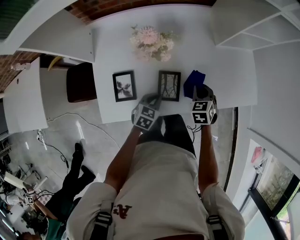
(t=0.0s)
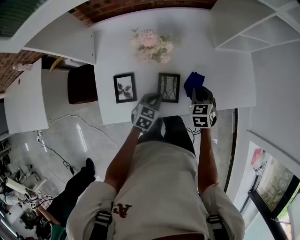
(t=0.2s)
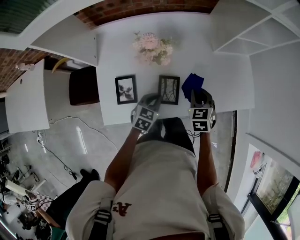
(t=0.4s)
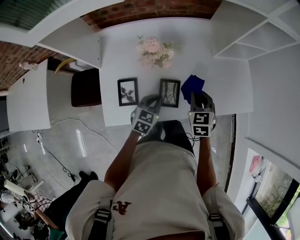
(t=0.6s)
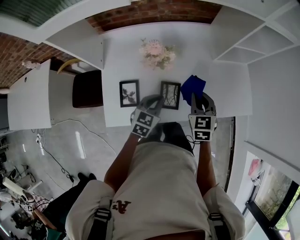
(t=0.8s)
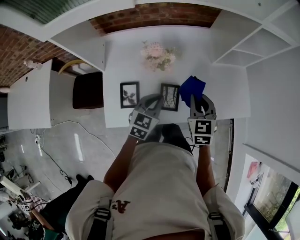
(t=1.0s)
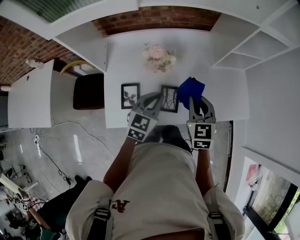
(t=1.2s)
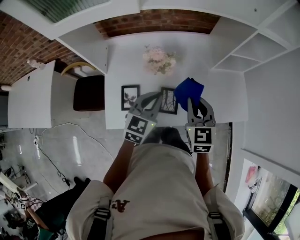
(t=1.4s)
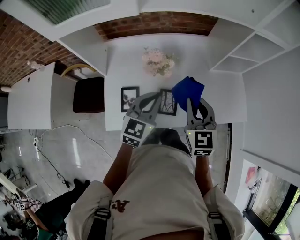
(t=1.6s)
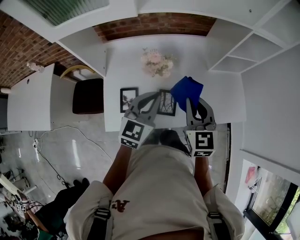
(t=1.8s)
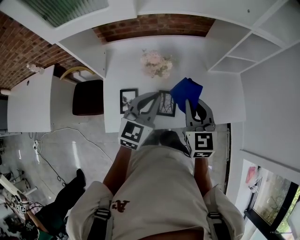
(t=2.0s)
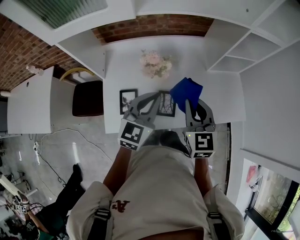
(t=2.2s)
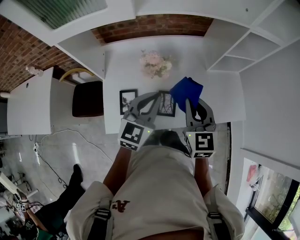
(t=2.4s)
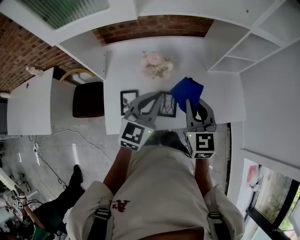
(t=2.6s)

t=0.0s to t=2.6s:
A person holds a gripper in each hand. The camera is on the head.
t=0.0s to t=1.2s: The two grippers go about 20 cm upward. The left gripper swivels some 20 degrees. Meanwhile the right gripper rotates roughly 20 degrees.
t=1.2s to t=2.6s: Both grippers move upward, roughly 10 cm.

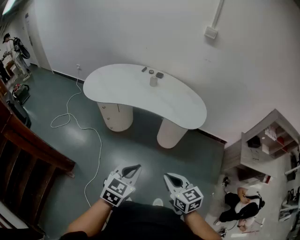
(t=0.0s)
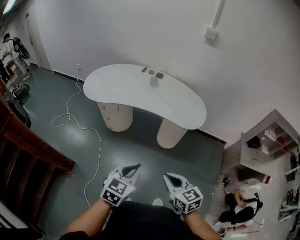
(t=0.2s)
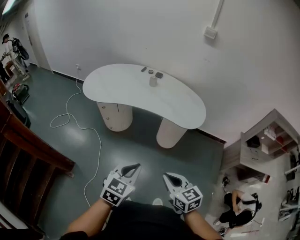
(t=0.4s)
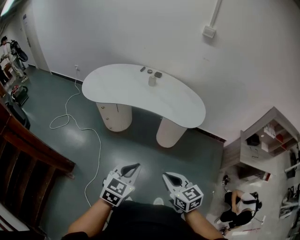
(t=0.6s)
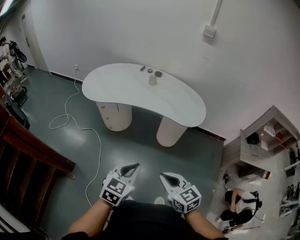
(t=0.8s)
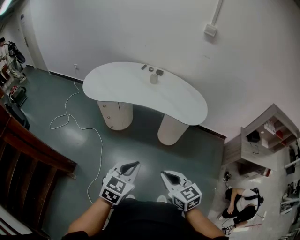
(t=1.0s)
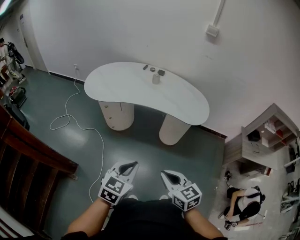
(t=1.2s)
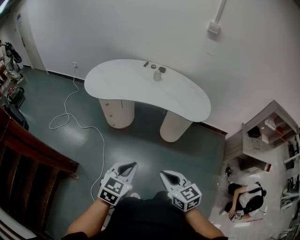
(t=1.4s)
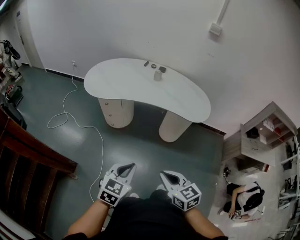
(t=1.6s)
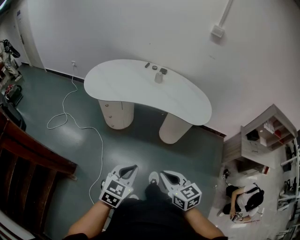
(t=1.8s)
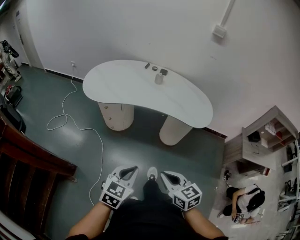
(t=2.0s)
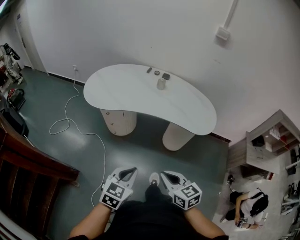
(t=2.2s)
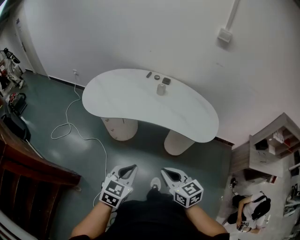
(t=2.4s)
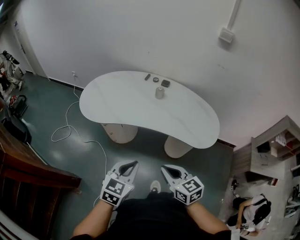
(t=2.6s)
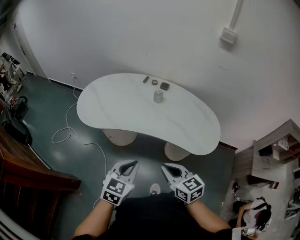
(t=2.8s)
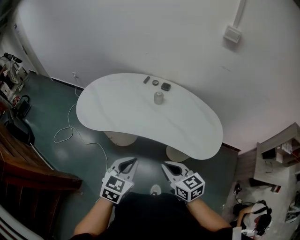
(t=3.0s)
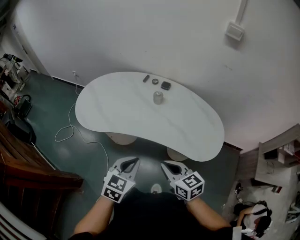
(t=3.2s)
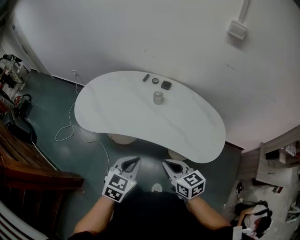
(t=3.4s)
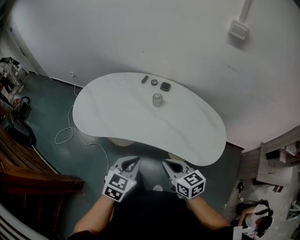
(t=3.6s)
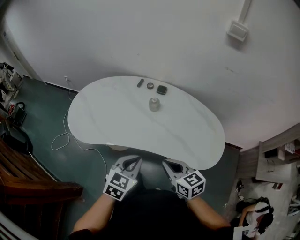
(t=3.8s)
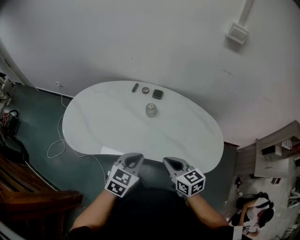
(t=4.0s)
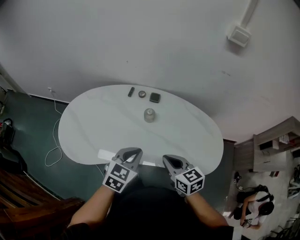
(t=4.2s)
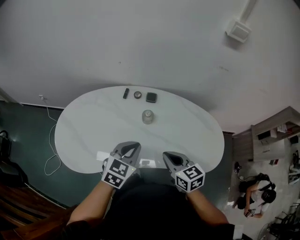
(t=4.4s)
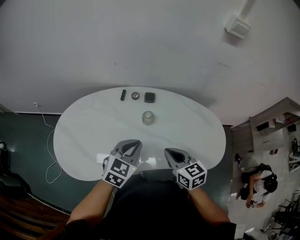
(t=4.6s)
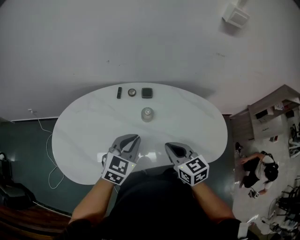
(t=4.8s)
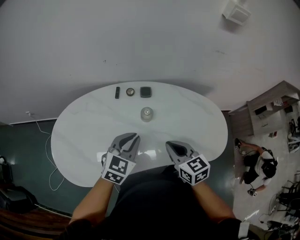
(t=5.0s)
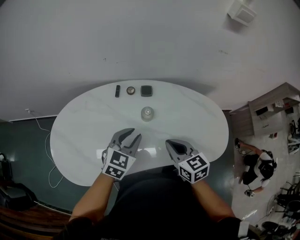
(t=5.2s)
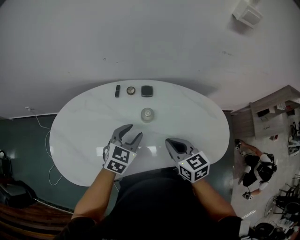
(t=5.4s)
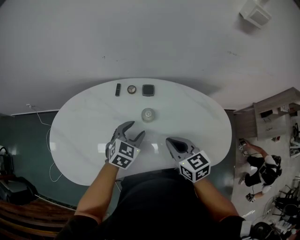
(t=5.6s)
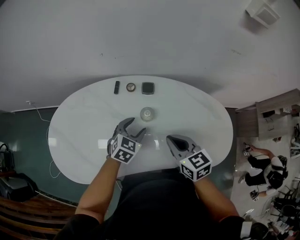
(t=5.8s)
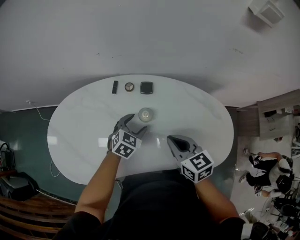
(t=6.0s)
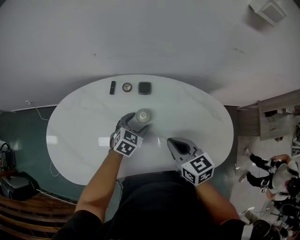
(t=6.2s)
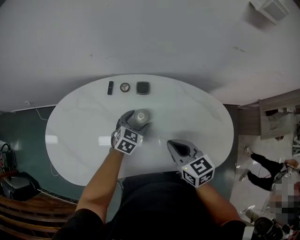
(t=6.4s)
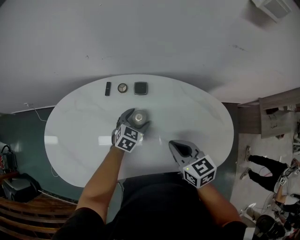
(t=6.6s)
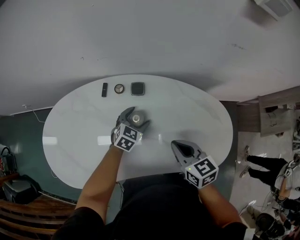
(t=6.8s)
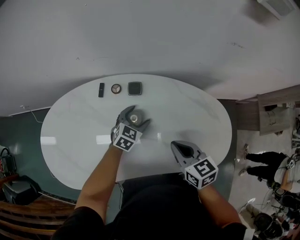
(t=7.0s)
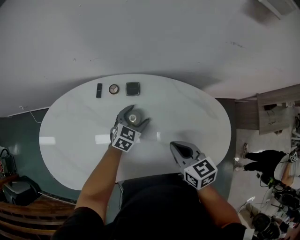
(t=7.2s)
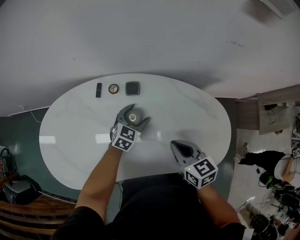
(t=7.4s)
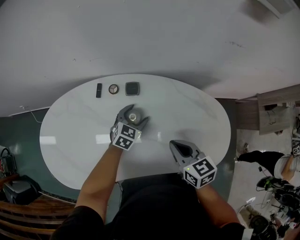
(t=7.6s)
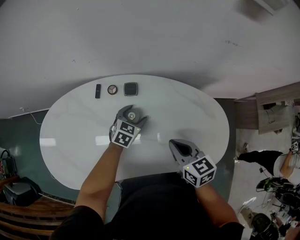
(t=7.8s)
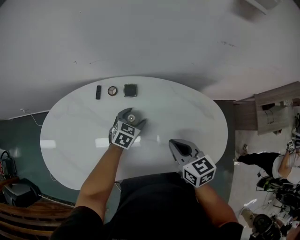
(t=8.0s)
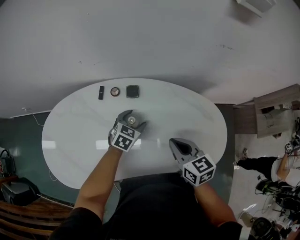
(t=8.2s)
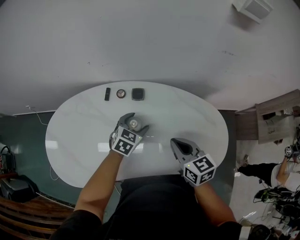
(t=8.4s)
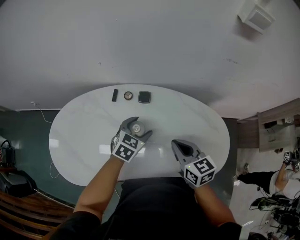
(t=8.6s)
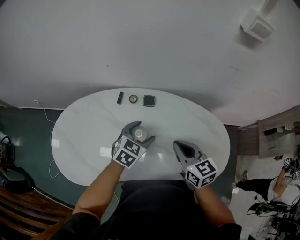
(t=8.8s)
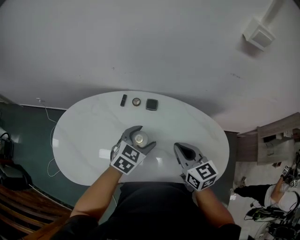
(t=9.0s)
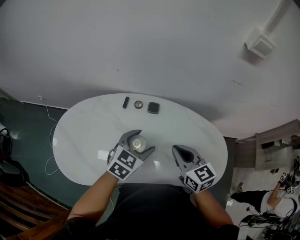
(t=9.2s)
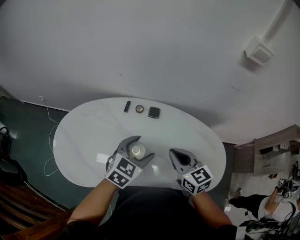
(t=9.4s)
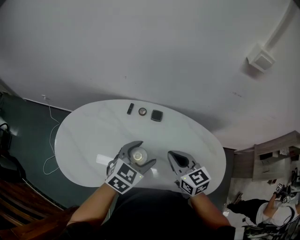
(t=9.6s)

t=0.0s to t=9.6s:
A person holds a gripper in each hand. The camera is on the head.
t=0.0s to t=1.6s: The two grippers go roughly 10 cm to the left.
t=1.6s to t=3.2s: Both grippers move forward, about 35 cm.
t=3.2s to t=4.8s: The left gripper changes place by roughly 35 cm, and swivels some 30 degrees. Meanwhile the right gripper moves about 30 cm, and changes its angle by some 30 degrees.
t=4.8s to t=6.4s: The right gripper moves forward, roughly 5 cm. Meanwhile the left gripper heads downward and forward, covering approximately 25 cm, and opens.
t=6.4s to t=8.0s: The right gripper travels to the right by some 5 cm, while the left gripper ends up some 5 cm from where it was.
t=8.0s to t=9.6s: The left gripper travels upward and backward by roughly 25 cm; the right gripper goes roughly 10 cm upward and to the left, and rotates roughly 20 degrees.

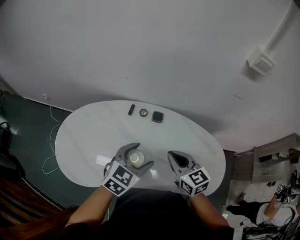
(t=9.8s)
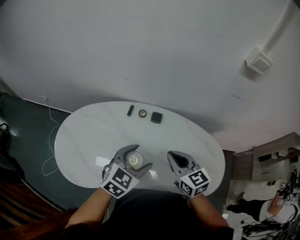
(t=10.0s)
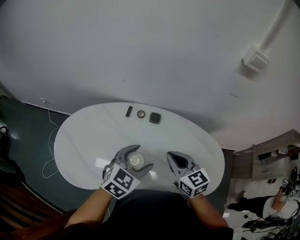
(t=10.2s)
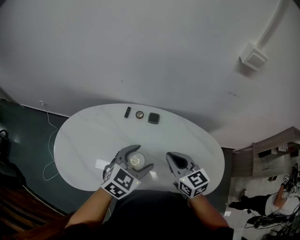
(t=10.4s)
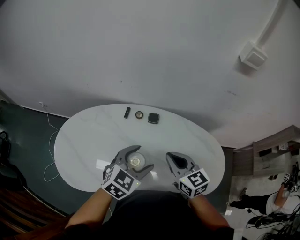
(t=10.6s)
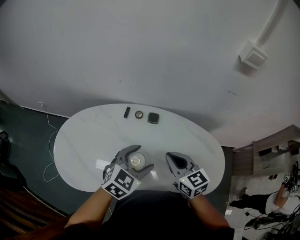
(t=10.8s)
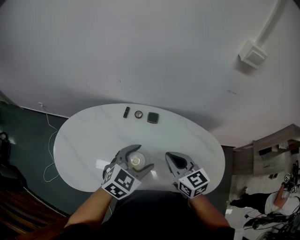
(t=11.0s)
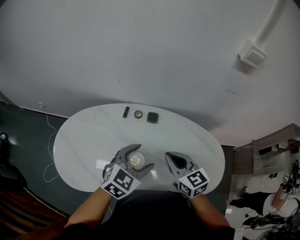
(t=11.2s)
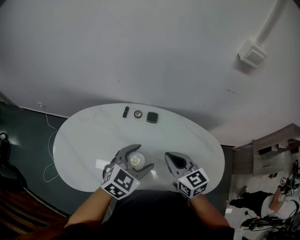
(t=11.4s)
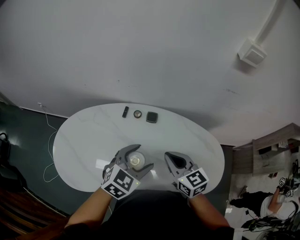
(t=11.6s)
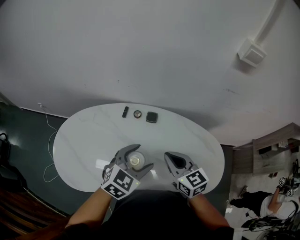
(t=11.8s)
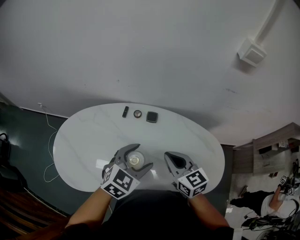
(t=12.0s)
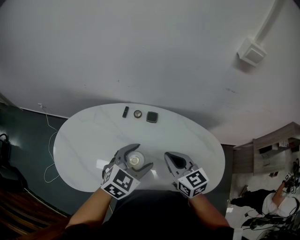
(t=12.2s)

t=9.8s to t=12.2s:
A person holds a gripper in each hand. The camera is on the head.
t=9.8s to t=11.0s: The grippers move only a little.
t=11.0s to t=12.2s: Neither gripper changes place.

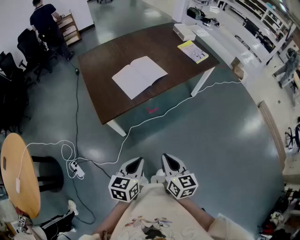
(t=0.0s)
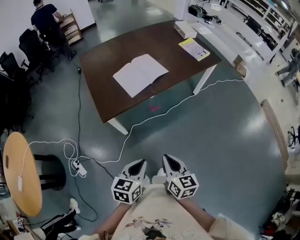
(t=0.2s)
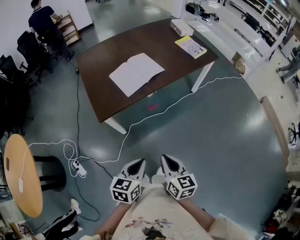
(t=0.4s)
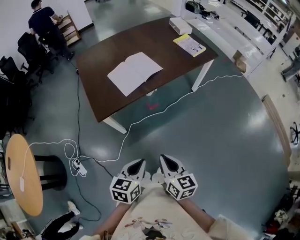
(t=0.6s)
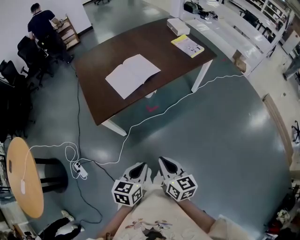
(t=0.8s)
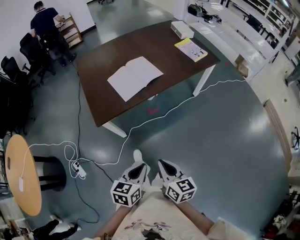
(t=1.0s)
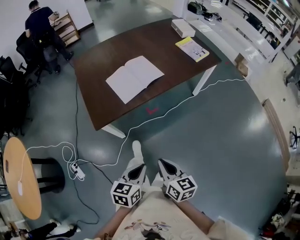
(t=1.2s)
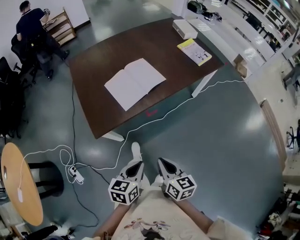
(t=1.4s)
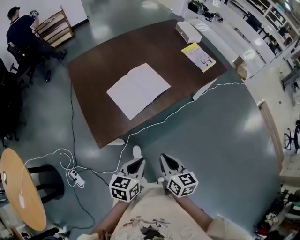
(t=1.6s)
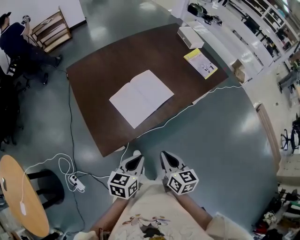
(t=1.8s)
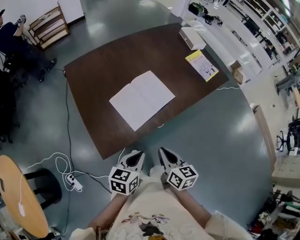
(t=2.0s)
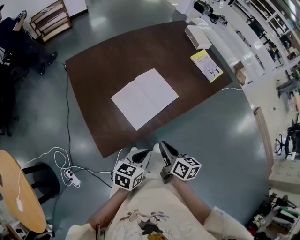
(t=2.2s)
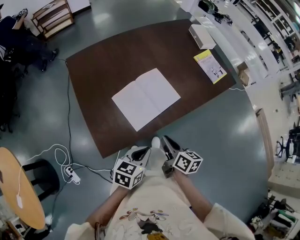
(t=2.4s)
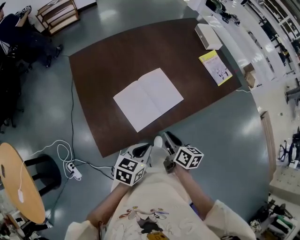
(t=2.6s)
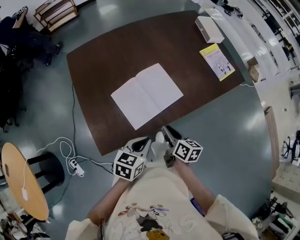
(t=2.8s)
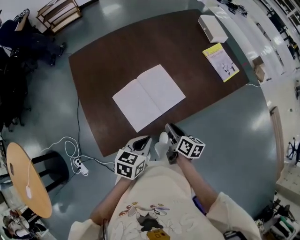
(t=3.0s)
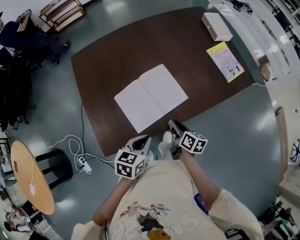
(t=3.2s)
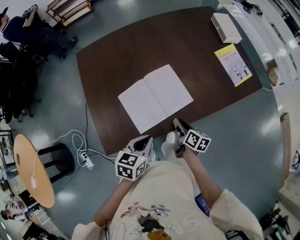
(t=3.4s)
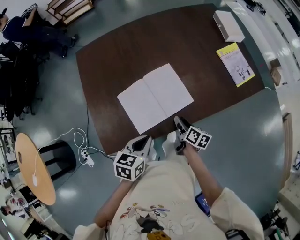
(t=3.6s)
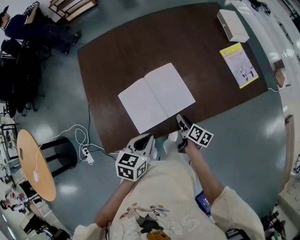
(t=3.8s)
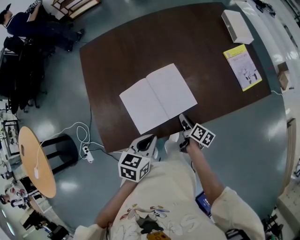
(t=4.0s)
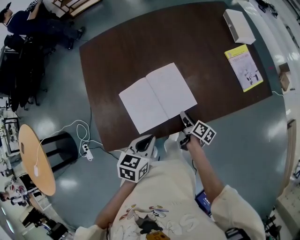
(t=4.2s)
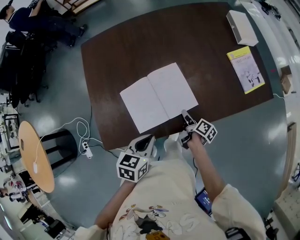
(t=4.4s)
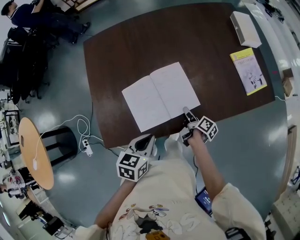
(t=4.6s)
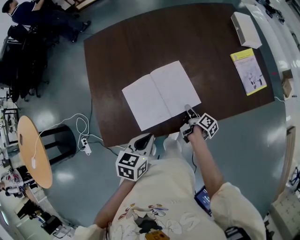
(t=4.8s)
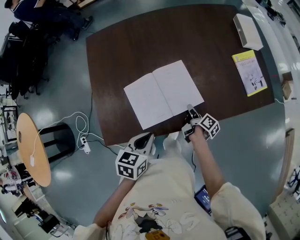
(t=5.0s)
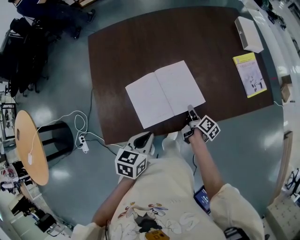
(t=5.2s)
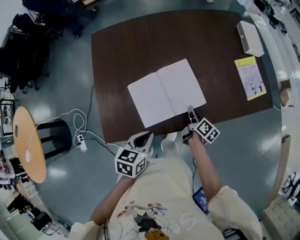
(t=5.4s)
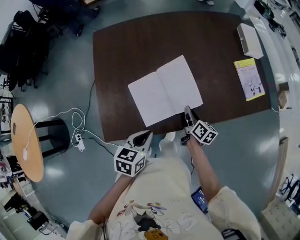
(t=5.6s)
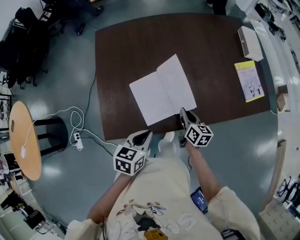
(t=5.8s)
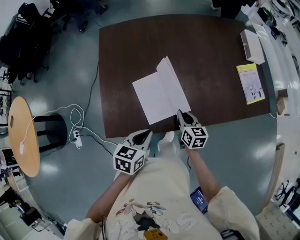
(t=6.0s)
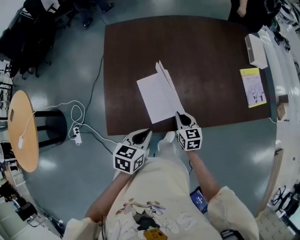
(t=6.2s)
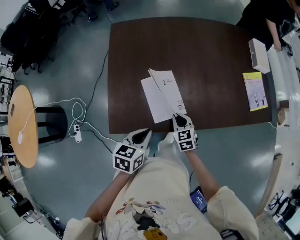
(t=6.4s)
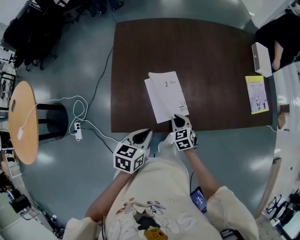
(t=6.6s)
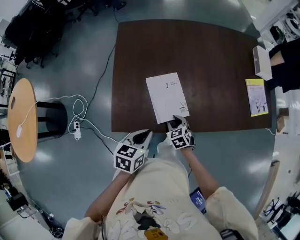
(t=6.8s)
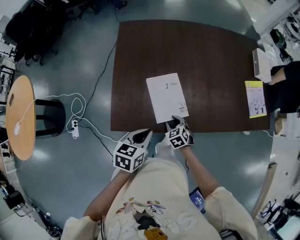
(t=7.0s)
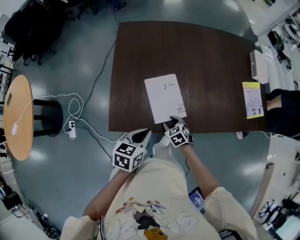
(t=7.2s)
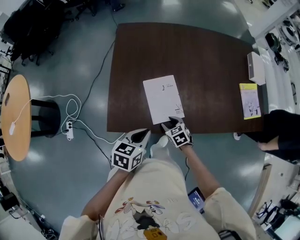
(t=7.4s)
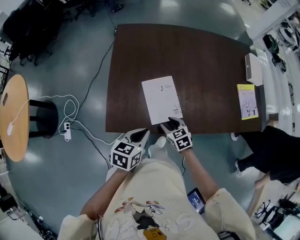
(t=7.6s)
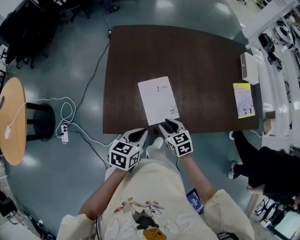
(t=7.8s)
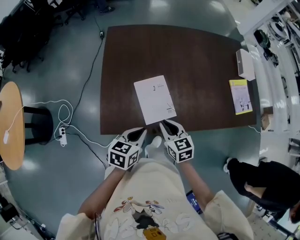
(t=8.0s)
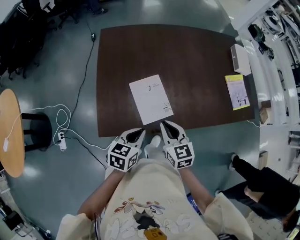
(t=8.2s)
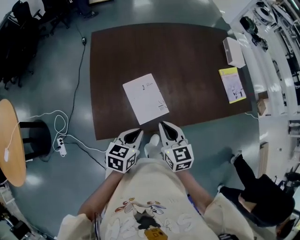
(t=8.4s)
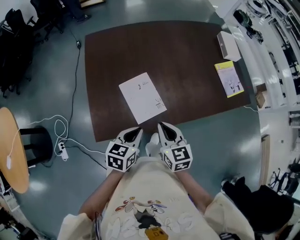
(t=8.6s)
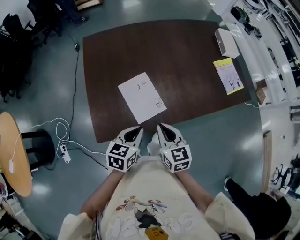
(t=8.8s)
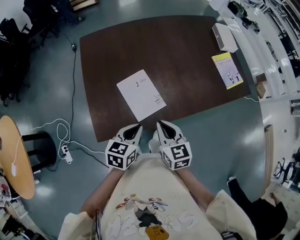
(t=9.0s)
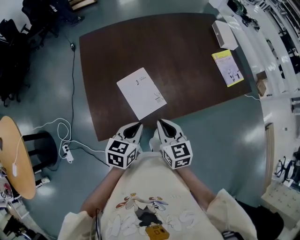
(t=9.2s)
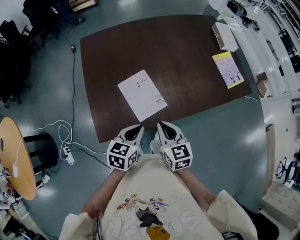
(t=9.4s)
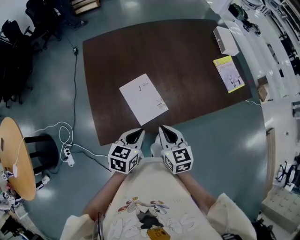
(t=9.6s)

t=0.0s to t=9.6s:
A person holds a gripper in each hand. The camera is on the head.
t=0.0s to t=1.6s: Both grippers move forward, about 20 cm.
t=1.6s to t=3.2s: The left gripper heads forward, covering about 25 cm. Meanwhile the right gripper heads forward and downward, covering roughly 35 cm, turns by about 20 degrees, and opens its fingers.
t=3.2s to t=4.8s: The right gripper travels downward and forward by some 15 cm, and rotates approximately 30 degrees.
t=4.8s to t=6.4s: The right gripper is displaced to the left, backward and upward by some 20 cm, and rotates around the line of its fingers by roughly 100 degrees, counterclockwise from behind. The left gripper goes approximately 10 cm to the left.
t=6.4s to t=8.0s: The right gripper shifts roughly 10 cm upward, and opens, then closes again.
t=8.0s to t=9.6s: The right gripper changes place by about 5 cm.
